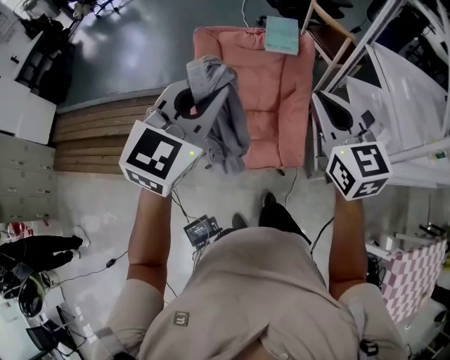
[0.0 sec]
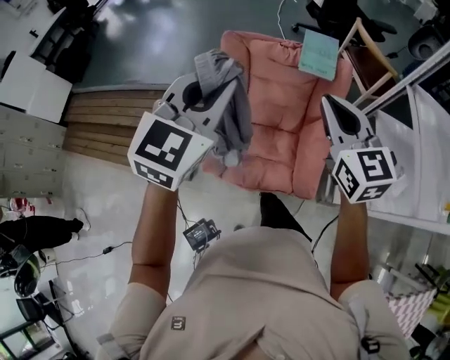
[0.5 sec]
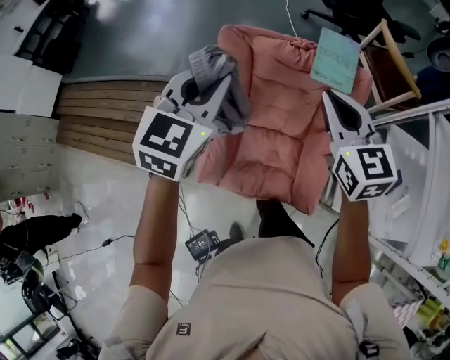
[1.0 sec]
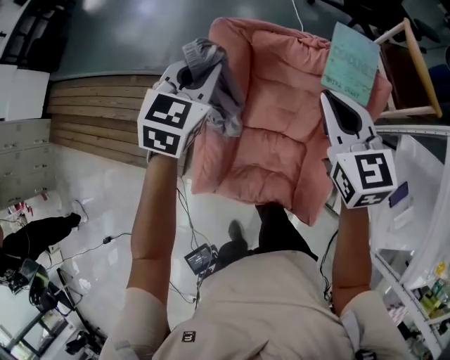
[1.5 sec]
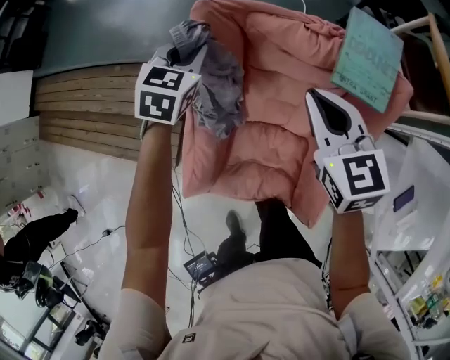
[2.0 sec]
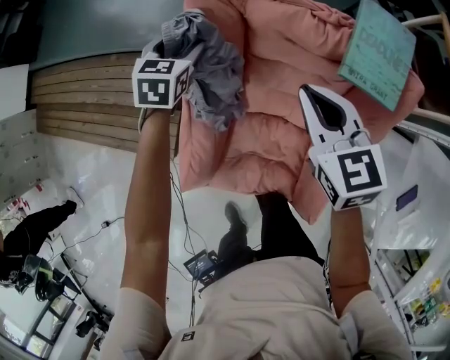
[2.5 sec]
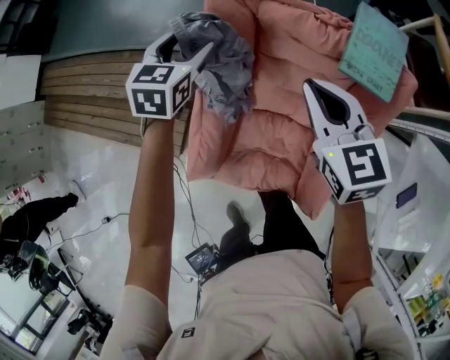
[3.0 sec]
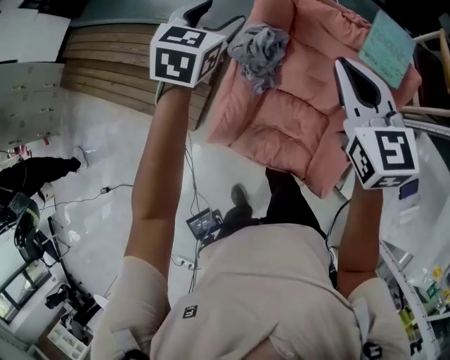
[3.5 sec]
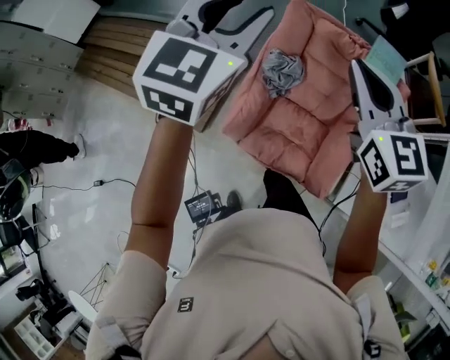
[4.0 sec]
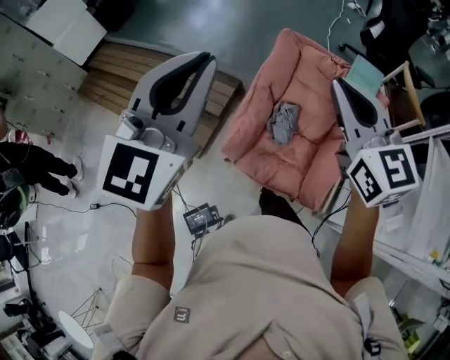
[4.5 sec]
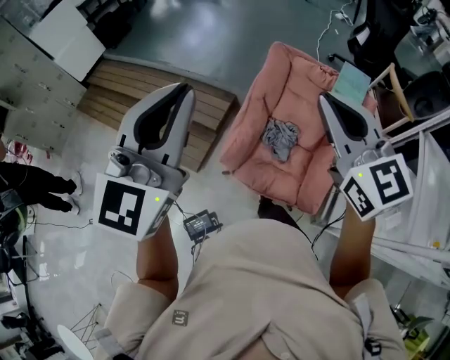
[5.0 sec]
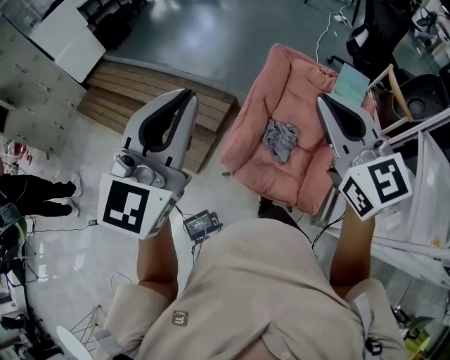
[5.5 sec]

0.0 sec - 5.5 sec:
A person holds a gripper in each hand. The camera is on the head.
0.0 sec - 2.0 sec: The two grippers travel together, forward, about 50 cm. Both grippers travel together downward, roughly 35 cm. The right gripper turns by about 20 degrees. The left gripper points its fingers about 30 degrees further downward.
2.0 sec - 3.5 sec: Both grippers travel together upward, backward and to the left, some 20 cm. The left gripper opens.
3.5 sec - 5.5 sec: The right gripper is displaced backward and upward by approximately 30 cm, and rotates some 20 degrees, while the left gripper goes approximately 50 cm backward and upward, angles its fingers upward, by approximately 40 degrees, and closes up.

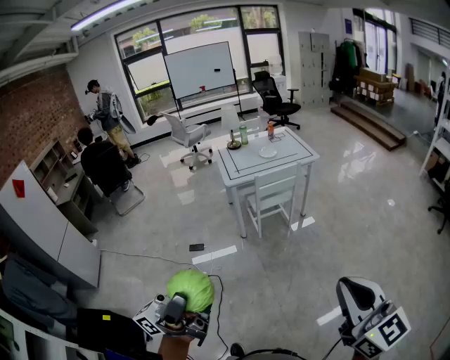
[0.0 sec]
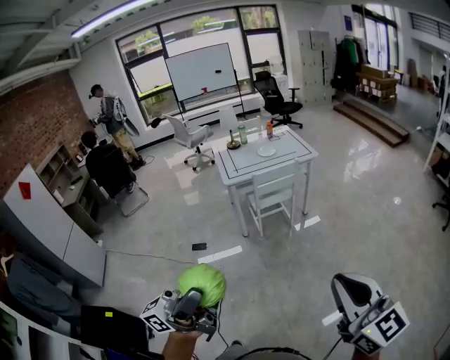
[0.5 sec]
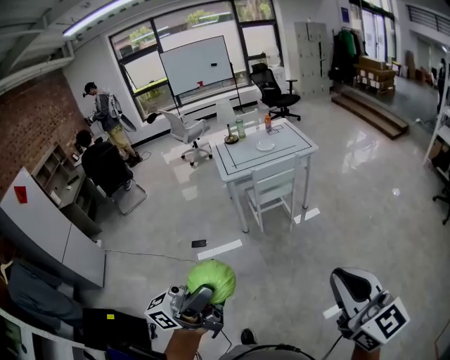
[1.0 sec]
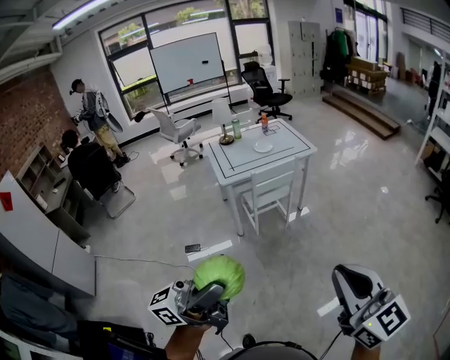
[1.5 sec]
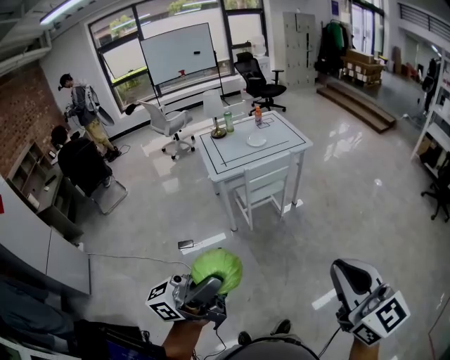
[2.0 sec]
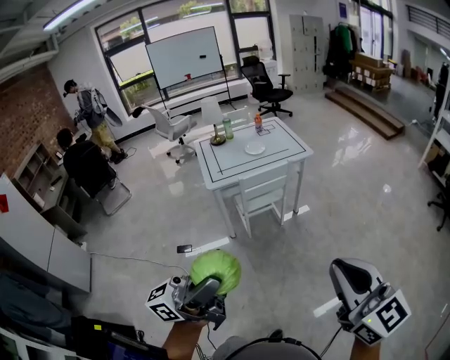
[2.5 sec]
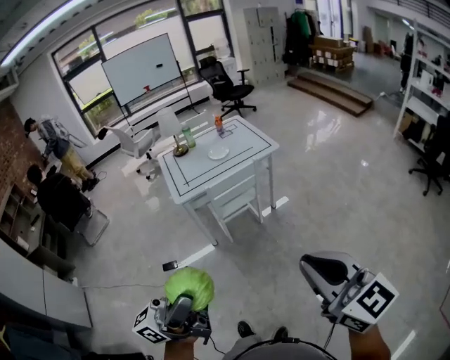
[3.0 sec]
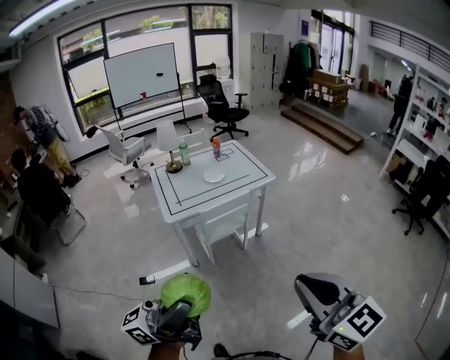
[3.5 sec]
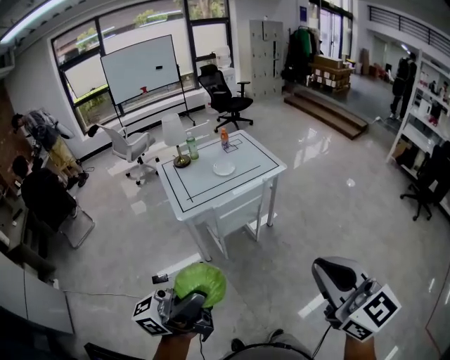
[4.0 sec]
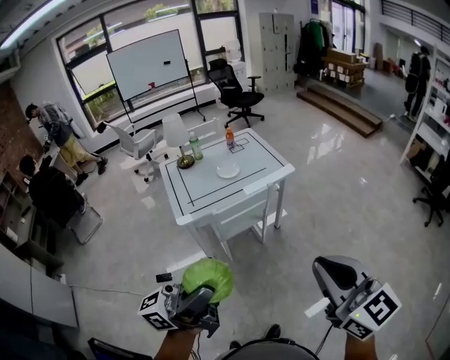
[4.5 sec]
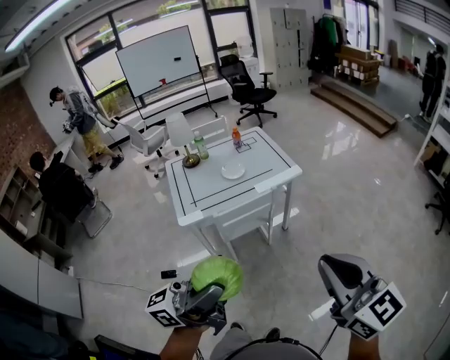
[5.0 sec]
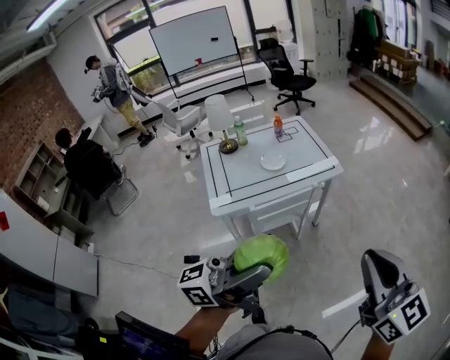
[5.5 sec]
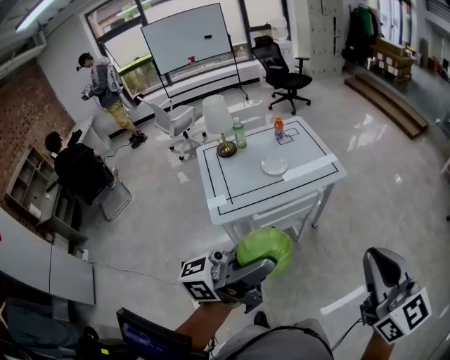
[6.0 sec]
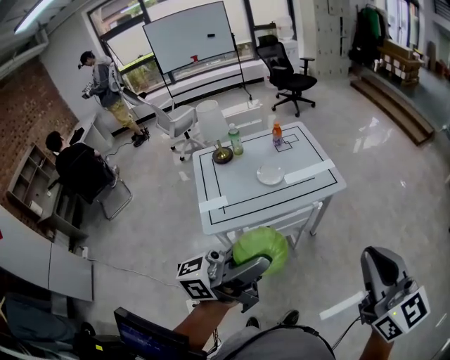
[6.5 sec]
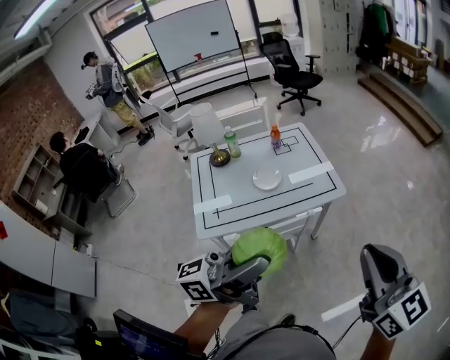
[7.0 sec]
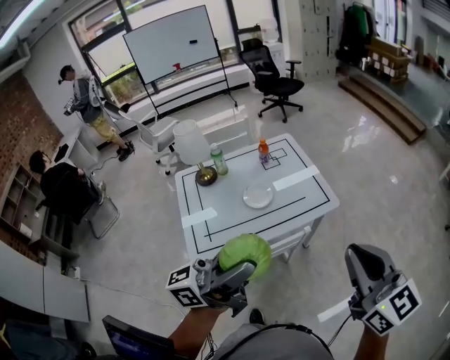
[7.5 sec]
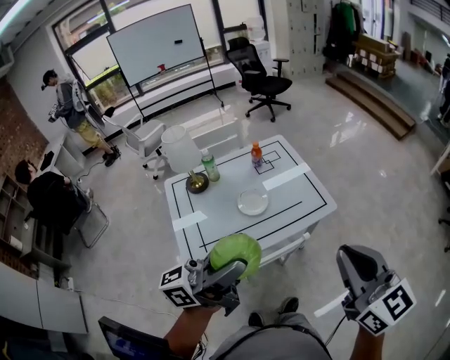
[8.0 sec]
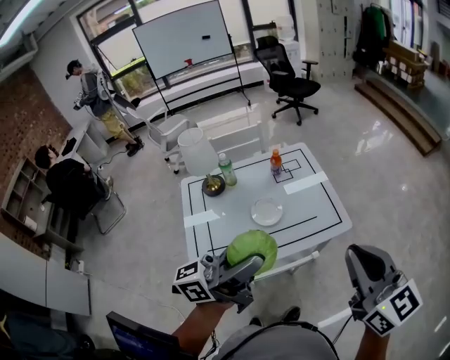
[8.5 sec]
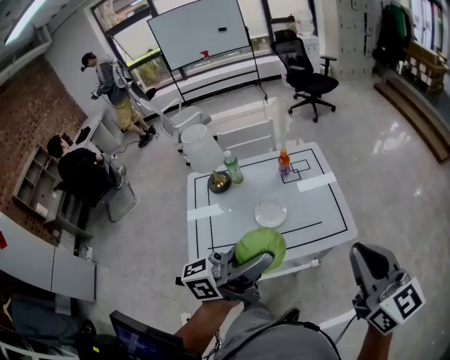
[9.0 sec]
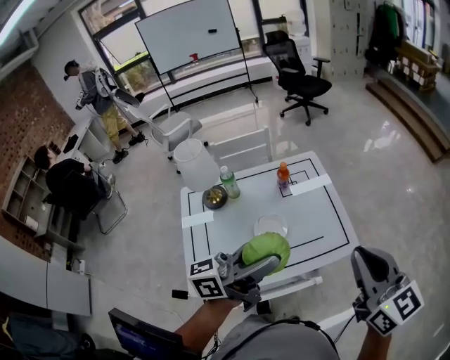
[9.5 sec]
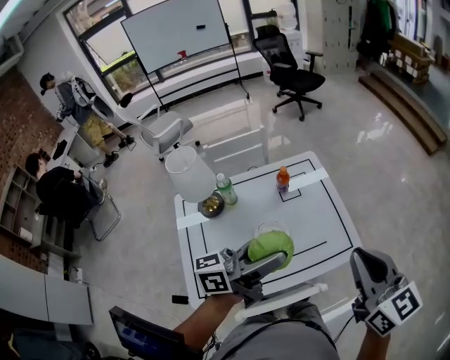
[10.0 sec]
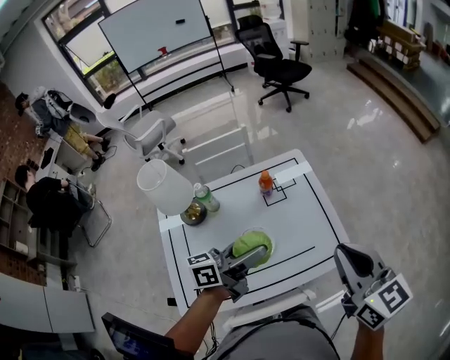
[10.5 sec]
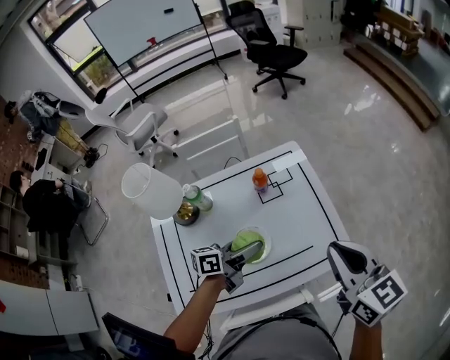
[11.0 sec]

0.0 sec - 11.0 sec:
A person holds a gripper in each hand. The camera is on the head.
0.0 sec - 2.0 sec: The left gripper shifts approximately 15 cm forward. The right gripper goes roughly 15 cm forward and to the left.
2.0 sec - 3.5 sec: The two grippers go roughly 15 cm forward.
3.5 sec - 5.5 sec: Both grippers travel together forward, approximately 25 cm.
5.5 sec - 7.5 sec: Both grippers travel together forward, about 25 cm.
7.5 sec - 9.0 sec: The two grippers go roughly 15 cm forward.
9.0 sec - 11.0 sec: The left gripper heads downward and forward, covering some 35 cm, and angles its fingers downward, by roughly 30 degrees, while the right gripper is displaced forward and downward by about 25 cm.

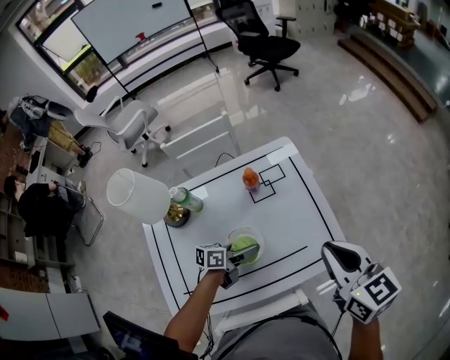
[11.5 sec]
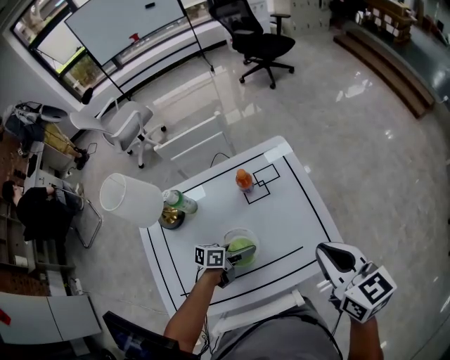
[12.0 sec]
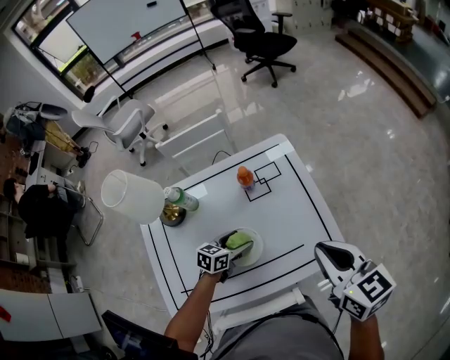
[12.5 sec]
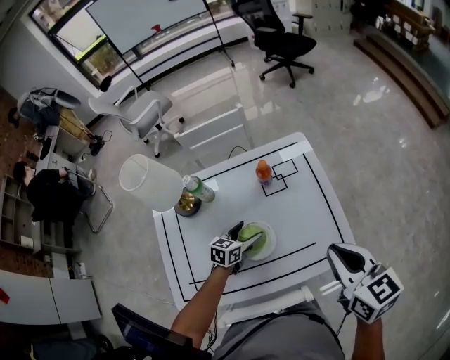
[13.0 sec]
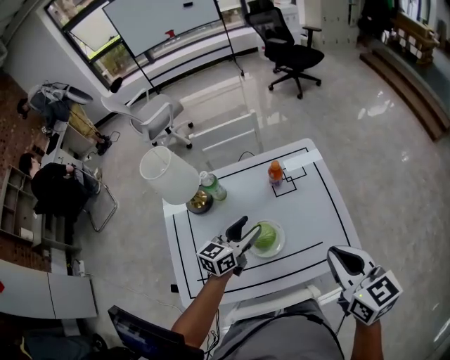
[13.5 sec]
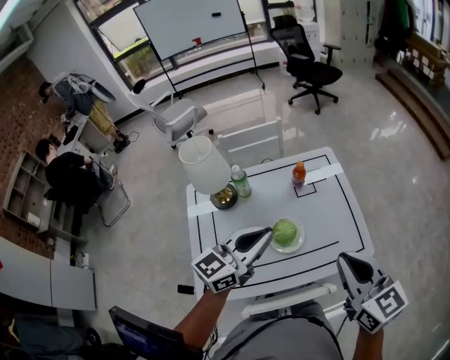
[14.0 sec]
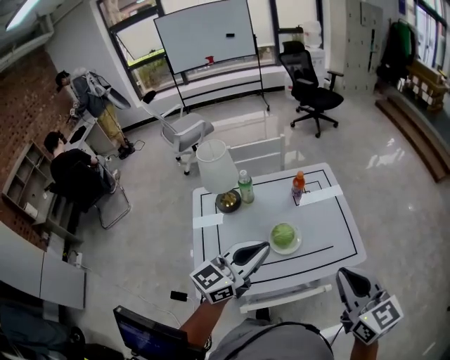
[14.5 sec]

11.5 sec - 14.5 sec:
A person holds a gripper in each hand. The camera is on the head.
11.5 sec - 13.0 sec: The left gripper changes place by some 5 cm, and turns by about 30 degrees.
13.0 sec - 14.5 sec: The right gripper moves backward, upward and to the left, about 20 cm; the left gripper travels upward and backward by approximately 40 cm, tips its fingers upward by roughly 40 degrees, and closes its fingers.

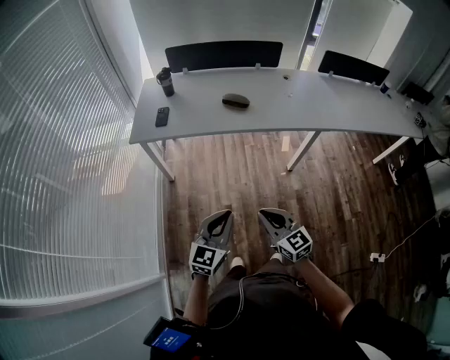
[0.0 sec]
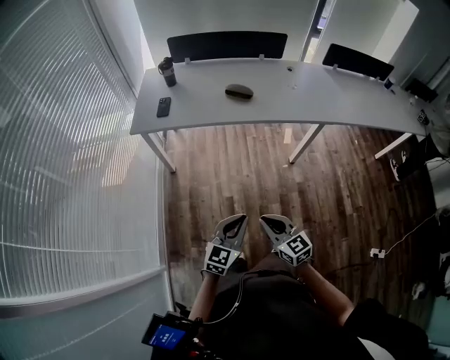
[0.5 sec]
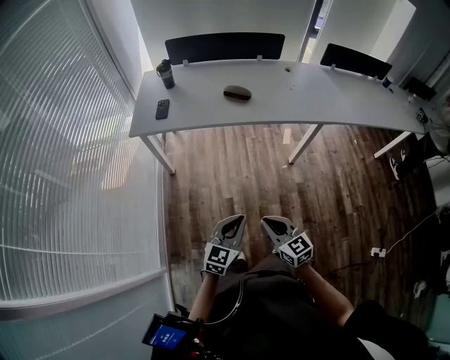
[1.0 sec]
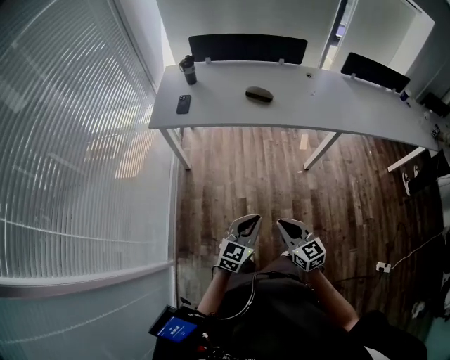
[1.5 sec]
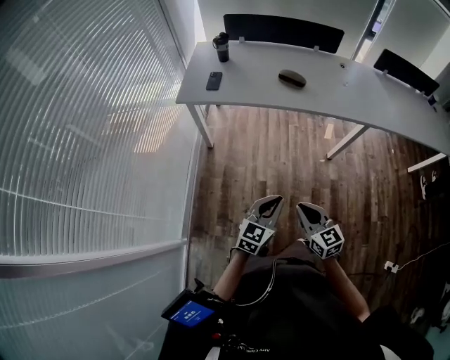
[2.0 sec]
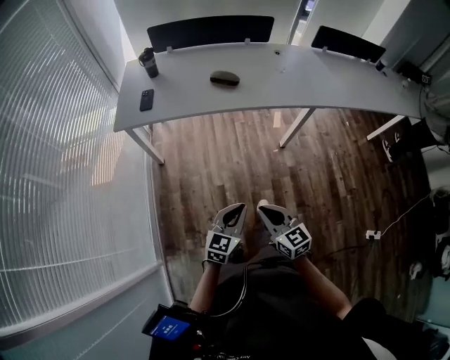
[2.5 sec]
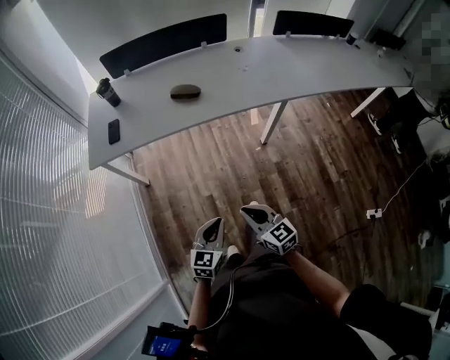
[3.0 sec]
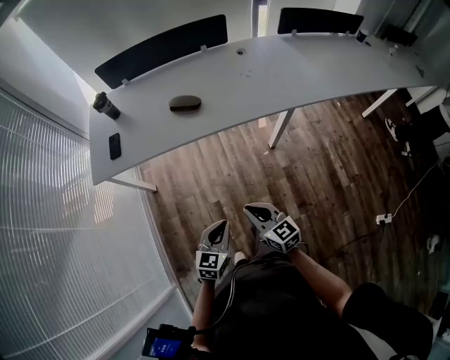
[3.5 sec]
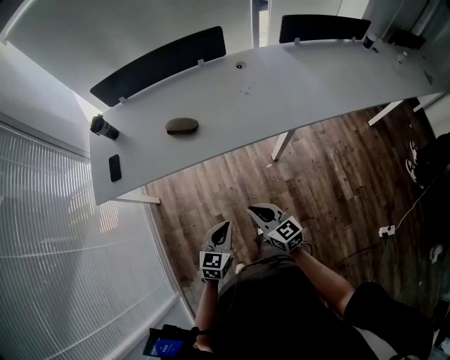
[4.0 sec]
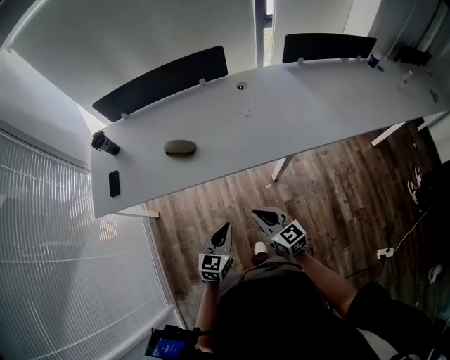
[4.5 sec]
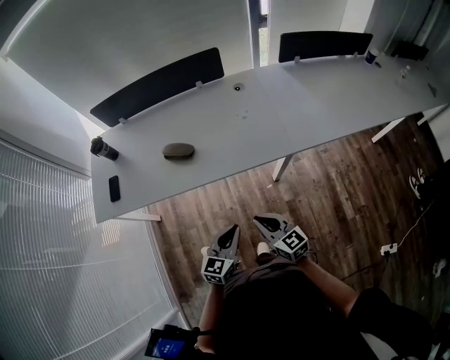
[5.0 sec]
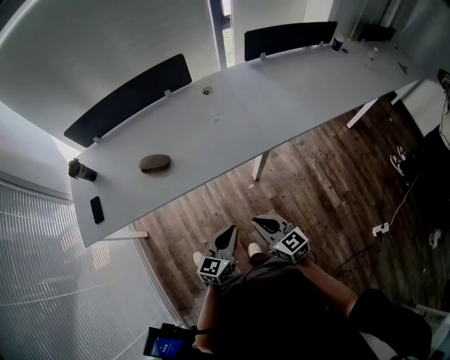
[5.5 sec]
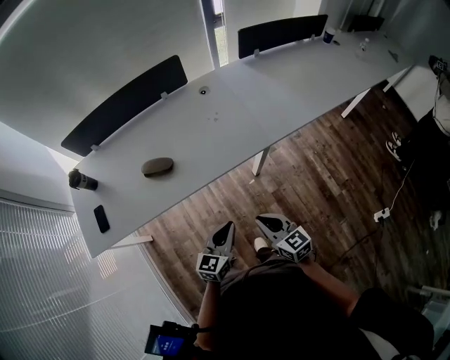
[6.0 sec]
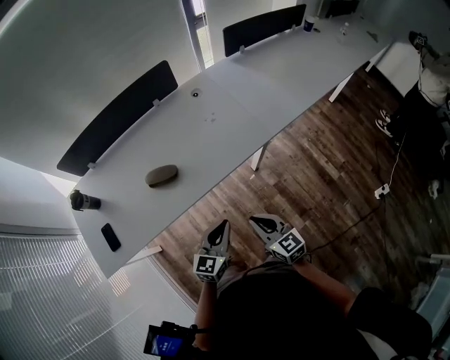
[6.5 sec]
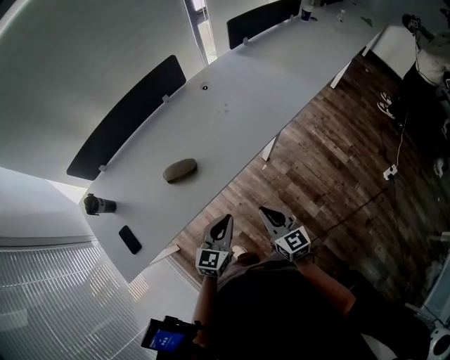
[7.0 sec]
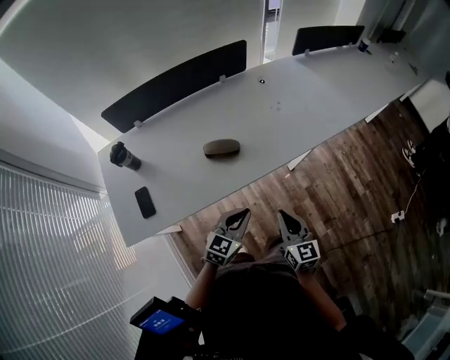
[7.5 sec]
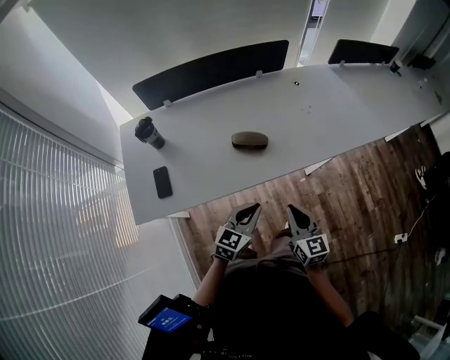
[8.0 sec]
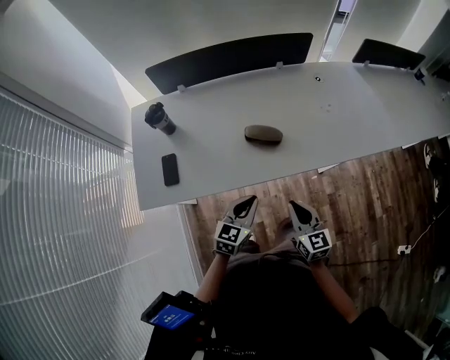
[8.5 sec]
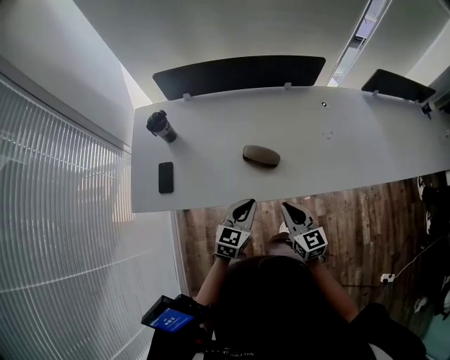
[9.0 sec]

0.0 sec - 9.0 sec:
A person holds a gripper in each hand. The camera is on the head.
0.0 sec - 2.0 sec: The right gripper moves some 5 cm; the left gripper heads downward, covering roughly 5 cm.
2.0 sec - 4.5 sec: The grippers both shift forward and to the right by about 40 cm.
4.5 sec - 7.0 sec: The right gripper ends up approximately 15 cm from where it was, and rotates some 40 degrees, while the left gripper moves approximately 15 cm, and turns by roughly 30 degrees.
7.0 sec - 9.0 sec: The left gripper ends up some 20 cm from where it was, and swivels about 30 degrees. The right gripper changes place by roughly 20 cm, and changes its angle by about 30 degrees.
